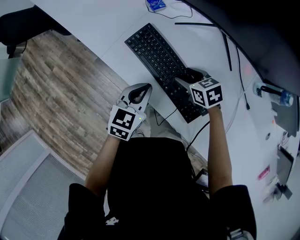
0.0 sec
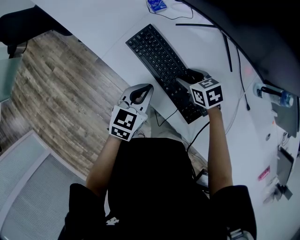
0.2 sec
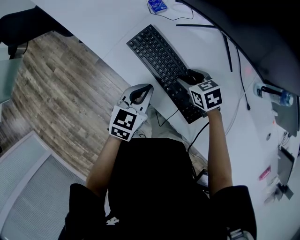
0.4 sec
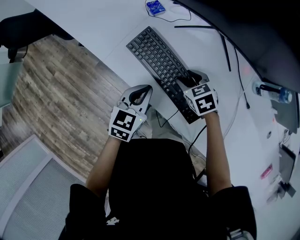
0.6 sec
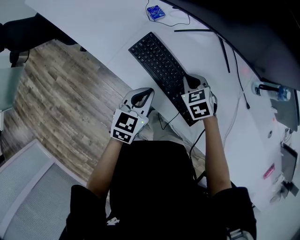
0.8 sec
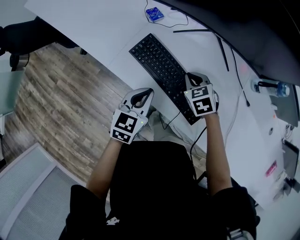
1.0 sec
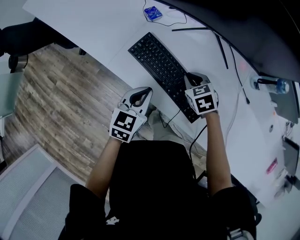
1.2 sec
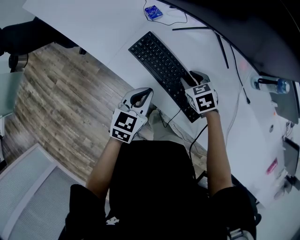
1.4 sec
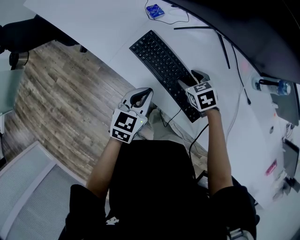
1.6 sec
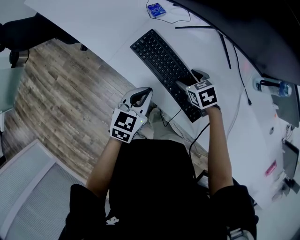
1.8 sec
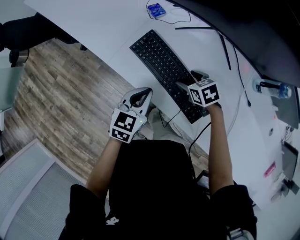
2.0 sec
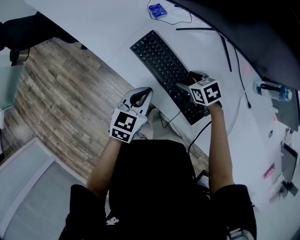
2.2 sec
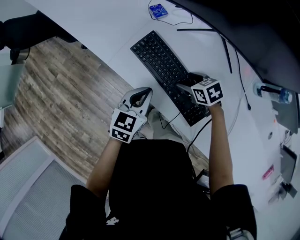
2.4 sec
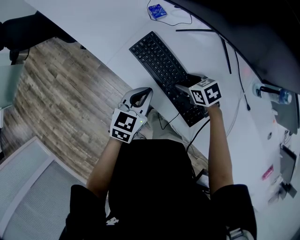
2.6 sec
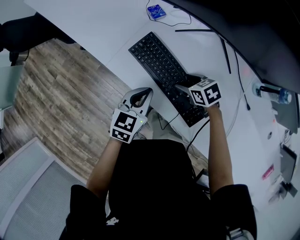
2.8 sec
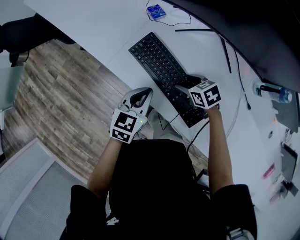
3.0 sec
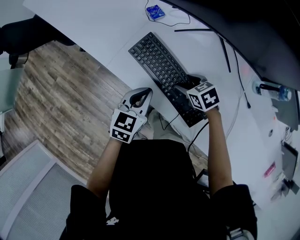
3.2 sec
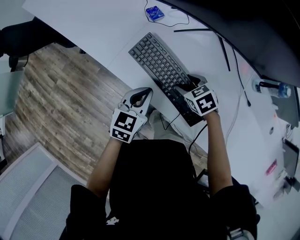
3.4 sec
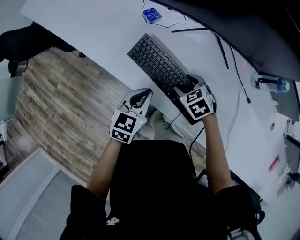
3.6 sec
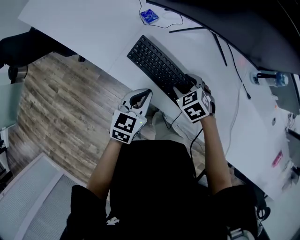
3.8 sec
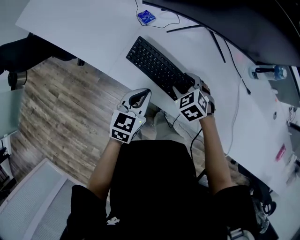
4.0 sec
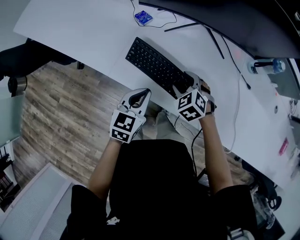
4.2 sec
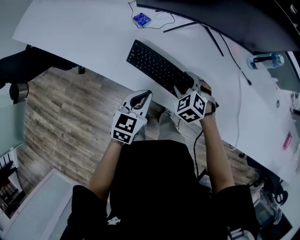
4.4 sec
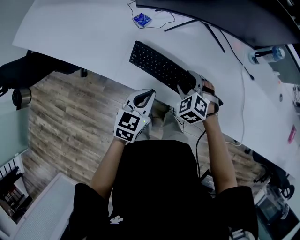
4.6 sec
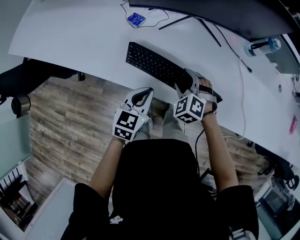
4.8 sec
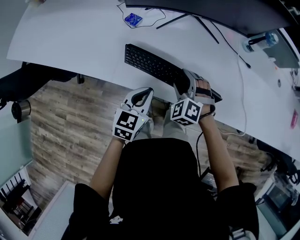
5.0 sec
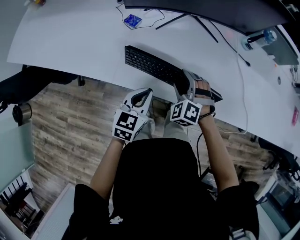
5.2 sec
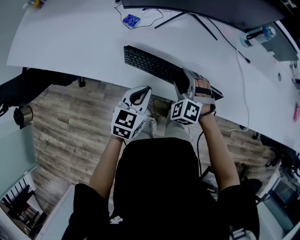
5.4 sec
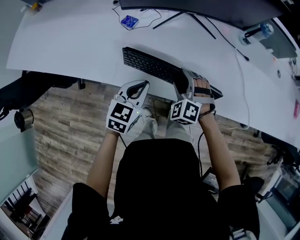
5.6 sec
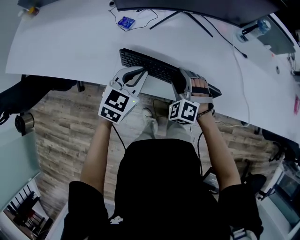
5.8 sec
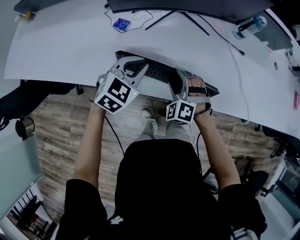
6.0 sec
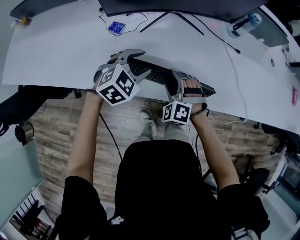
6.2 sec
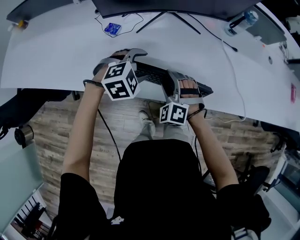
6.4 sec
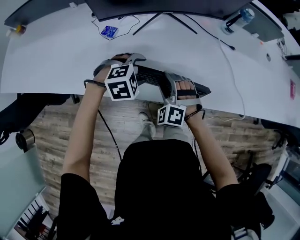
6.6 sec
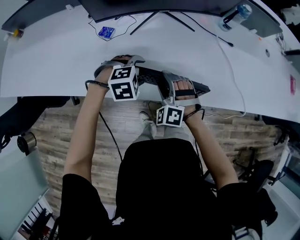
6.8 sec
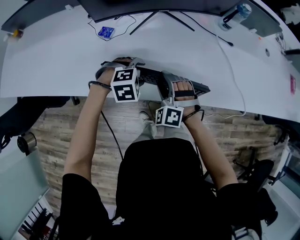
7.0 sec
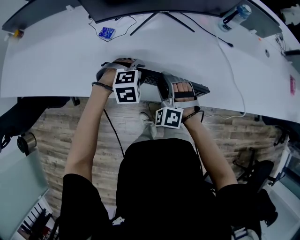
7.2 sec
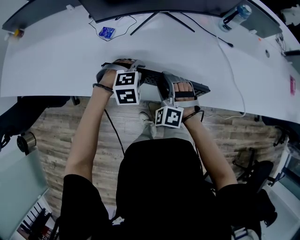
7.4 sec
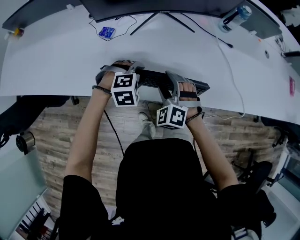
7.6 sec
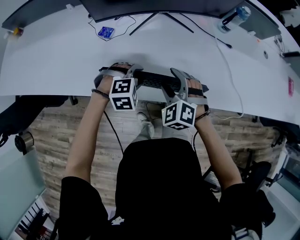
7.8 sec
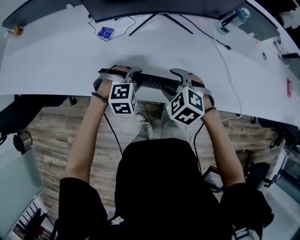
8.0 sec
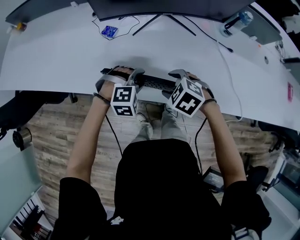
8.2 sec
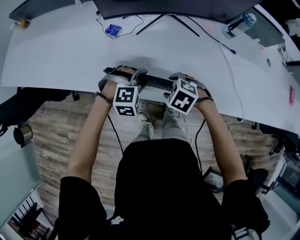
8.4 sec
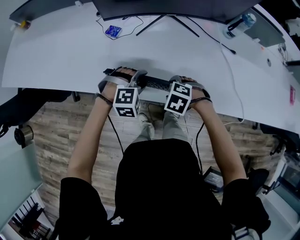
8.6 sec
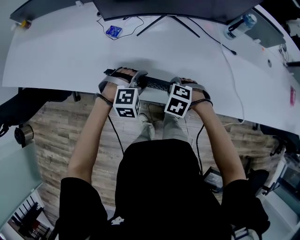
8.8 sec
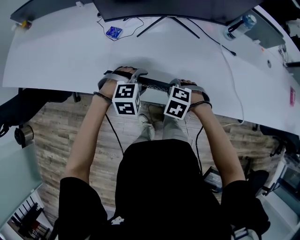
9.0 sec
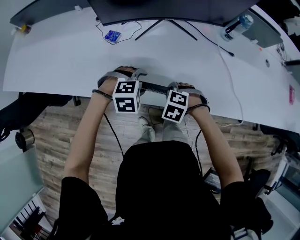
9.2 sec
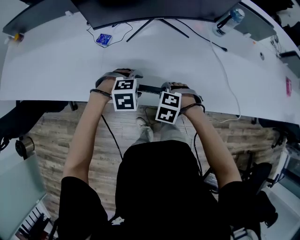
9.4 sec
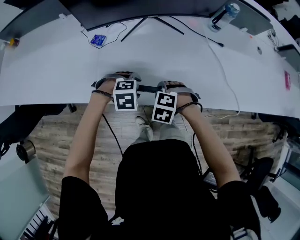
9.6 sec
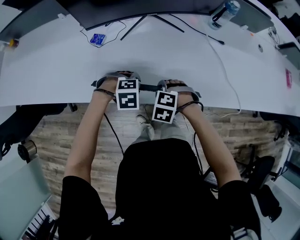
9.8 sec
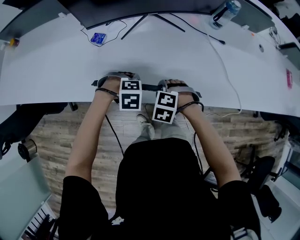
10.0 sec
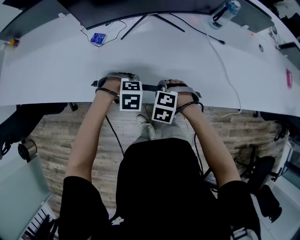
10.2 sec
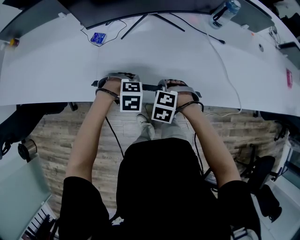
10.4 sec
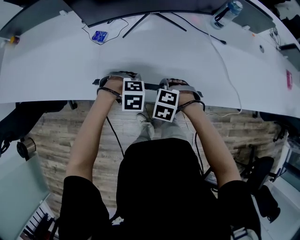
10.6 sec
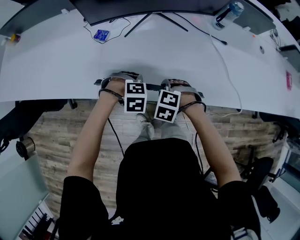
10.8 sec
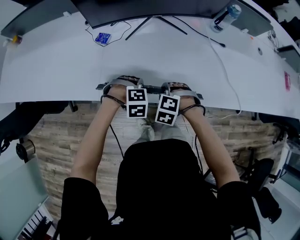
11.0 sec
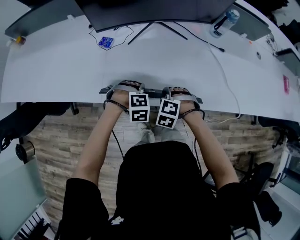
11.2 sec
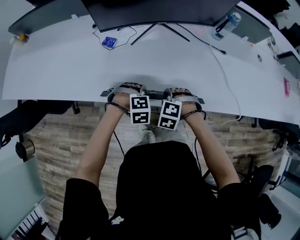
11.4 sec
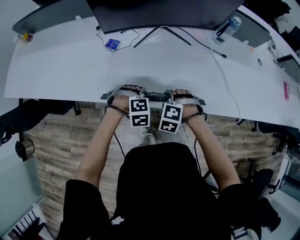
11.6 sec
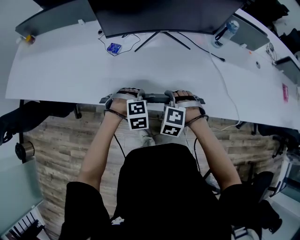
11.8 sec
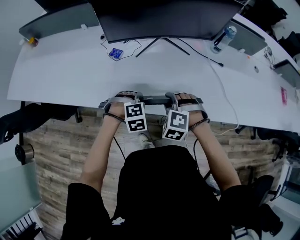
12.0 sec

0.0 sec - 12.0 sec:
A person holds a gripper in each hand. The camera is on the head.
0.0 sec - 1.6 sec: The right gripper closes and opens again.
1.6 sec - 3.0 sec: The grippers move only a little.
3.0 sec - 4.4 sec: The right gripper moves upward, some 5 cm, and turns by some 40 degrees.
4.4 sec - 6.0 sec: The left gripper is displaced forward by approximately 10 cm, and rotates about 40 degrees, while the right gripper swivels roughly 20 degrees.
6.0 sec - 7.6 sec: The left gripper heads downward, covering about 10 cm, rotates approximately 50 degrees, and opens its fingers.
7.6 sec - 9.0 sec: The right gripper goes about 5 cm downward, angles its fingers downward, by roughly 40 degrees, and closes up.
9.0 sec - 10.4 sec: The left gripper shifts by approximately 5 cm, swivels approximately 20 degrees, and closes its fingers.
10.4 sec - 12.0 sec: The left gripper moves upward, approximately 5 cm, and swivels some 20 degrees; the right gripper goes roughly 10 cm upward.

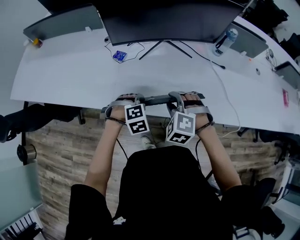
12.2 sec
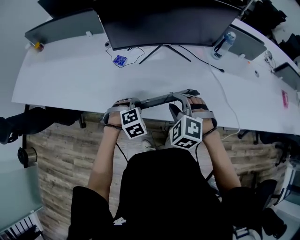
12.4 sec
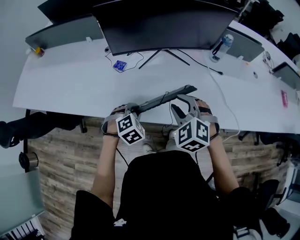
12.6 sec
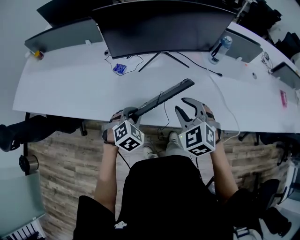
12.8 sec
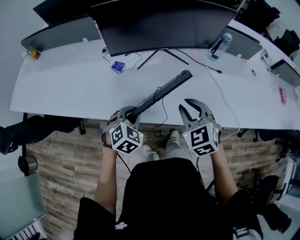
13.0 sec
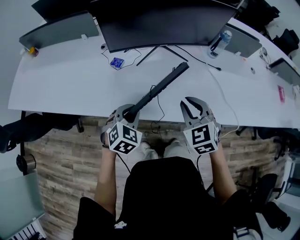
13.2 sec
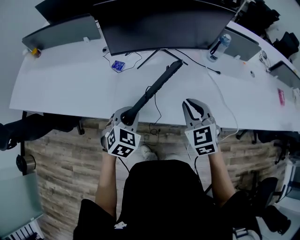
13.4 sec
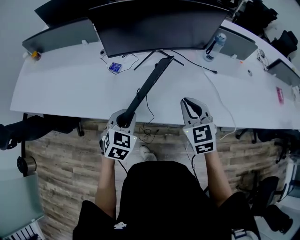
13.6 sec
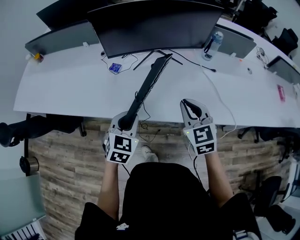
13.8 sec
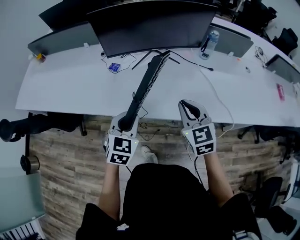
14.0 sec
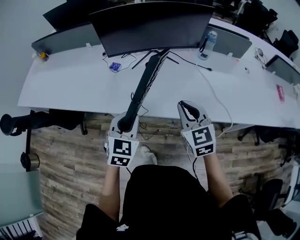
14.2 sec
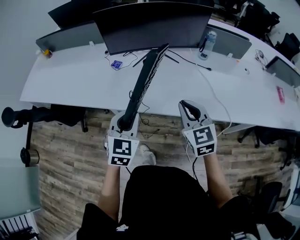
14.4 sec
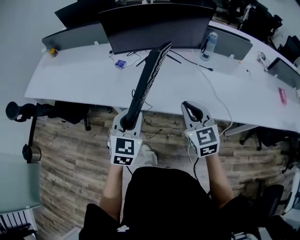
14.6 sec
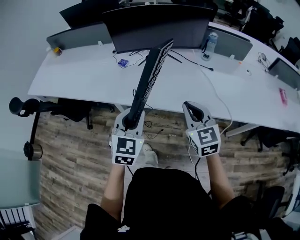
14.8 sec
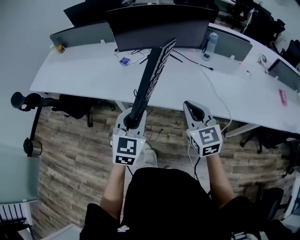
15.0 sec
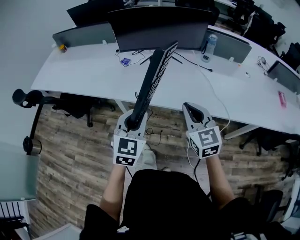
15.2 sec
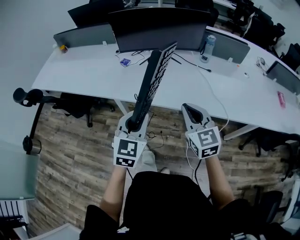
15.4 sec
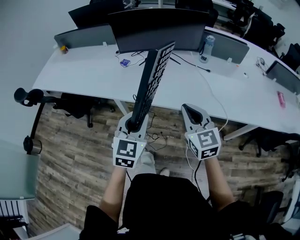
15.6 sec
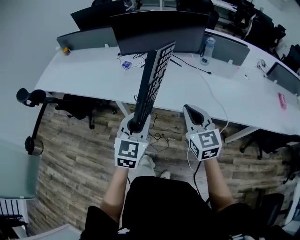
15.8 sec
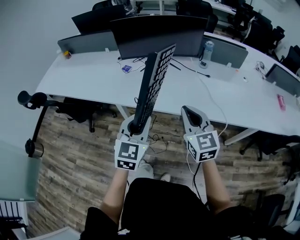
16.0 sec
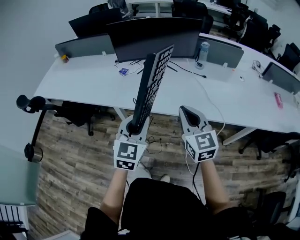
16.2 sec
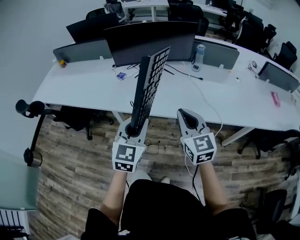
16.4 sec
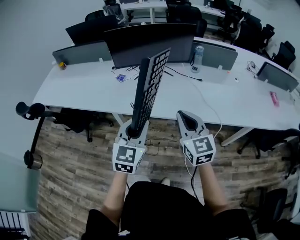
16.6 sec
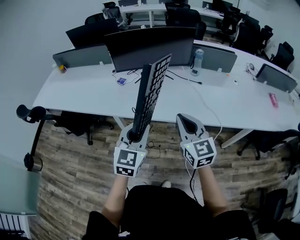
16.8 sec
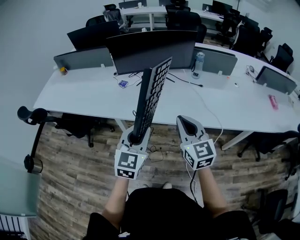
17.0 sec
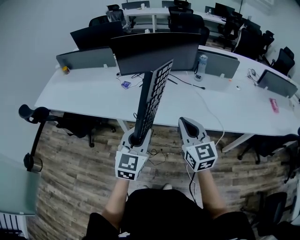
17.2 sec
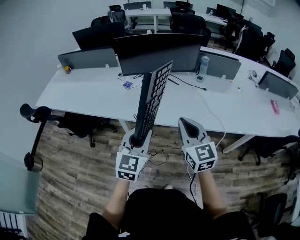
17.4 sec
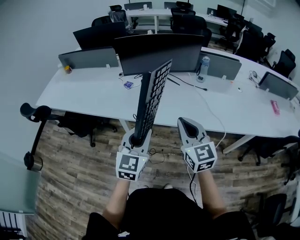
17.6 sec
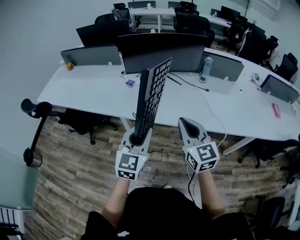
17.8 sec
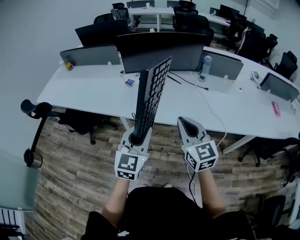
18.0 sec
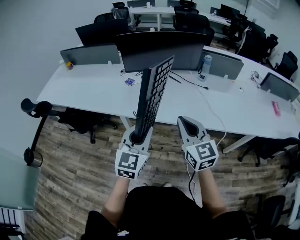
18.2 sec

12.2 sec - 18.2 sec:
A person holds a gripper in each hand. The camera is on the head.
12.2 sec - 13.8 sec: The right gripper shifts about 15 cm upward and to the right, rolls clockwise, seen from behind, by some 50 degrees, and closes. The left gripper moves upward and backward, about 15 cm, and tips its fingers upward by about 30 degrees.
13.8 sec - 15.2 sec: The right gripper heads backward, covering roughly 15 cm; the left gripper travels backward, upward and to the right by approximately 20 cm.
15.2 sec - 16.6 sec: The right gripper shifts by about 5 cm. Meanwhile the left gripper shifts by approximately 5 cm.
16.6 sec - 18.2 sec: The right gripper shifts roughly 5 cm to the left.

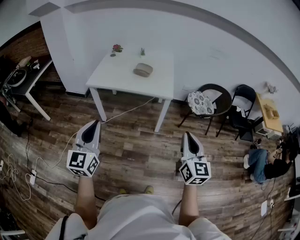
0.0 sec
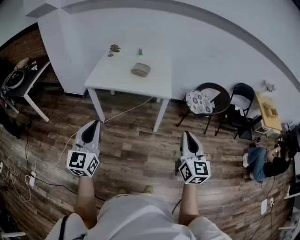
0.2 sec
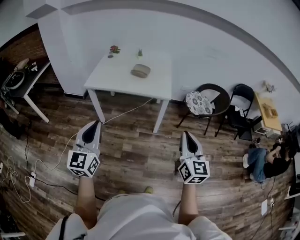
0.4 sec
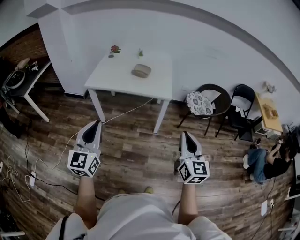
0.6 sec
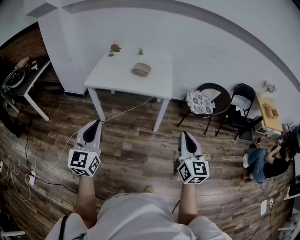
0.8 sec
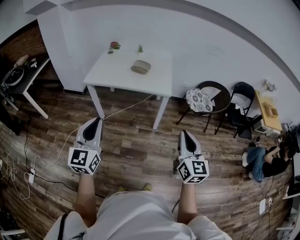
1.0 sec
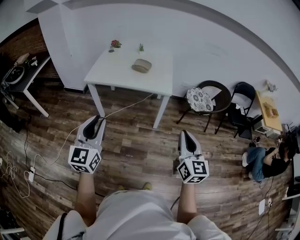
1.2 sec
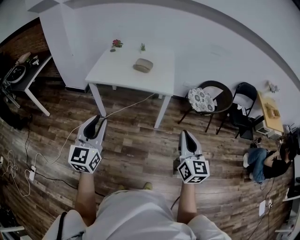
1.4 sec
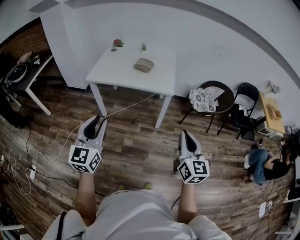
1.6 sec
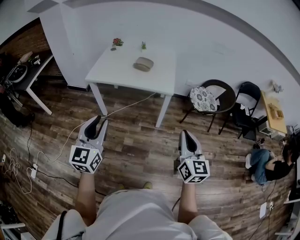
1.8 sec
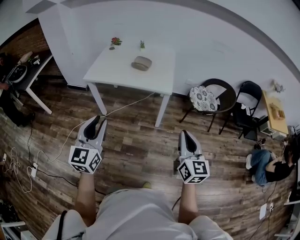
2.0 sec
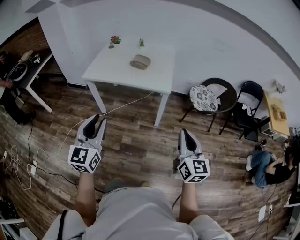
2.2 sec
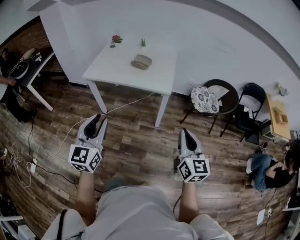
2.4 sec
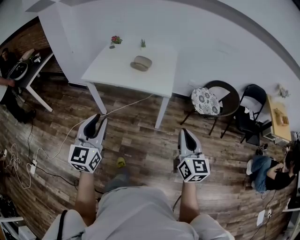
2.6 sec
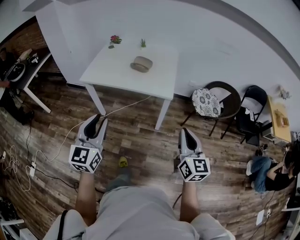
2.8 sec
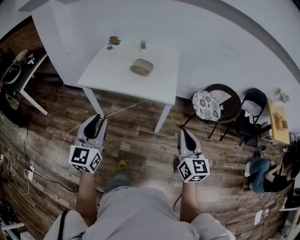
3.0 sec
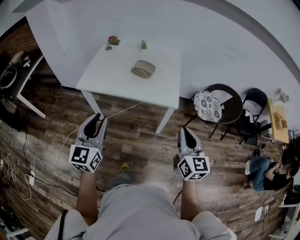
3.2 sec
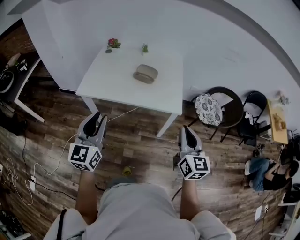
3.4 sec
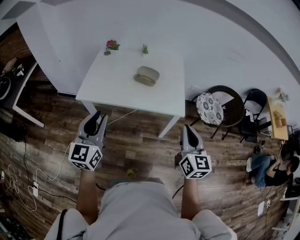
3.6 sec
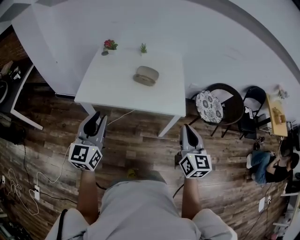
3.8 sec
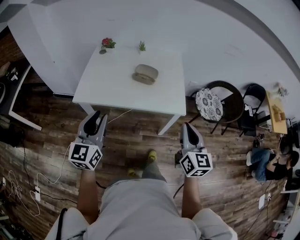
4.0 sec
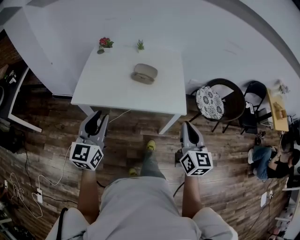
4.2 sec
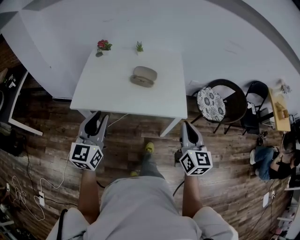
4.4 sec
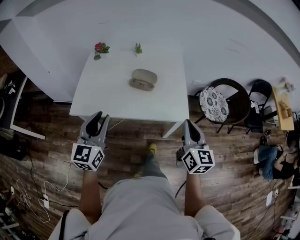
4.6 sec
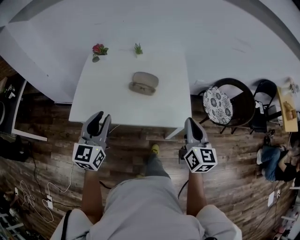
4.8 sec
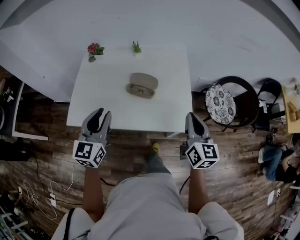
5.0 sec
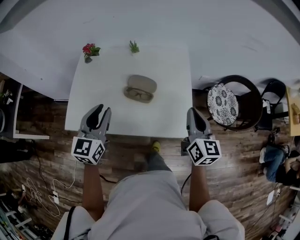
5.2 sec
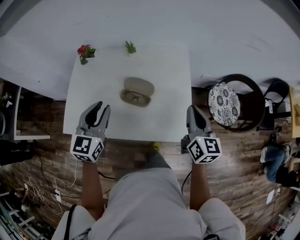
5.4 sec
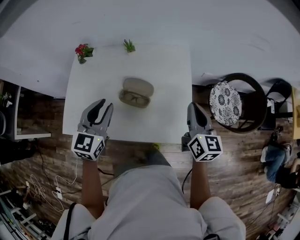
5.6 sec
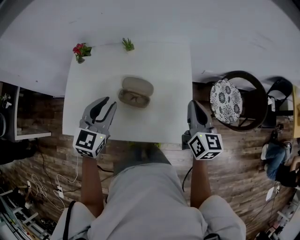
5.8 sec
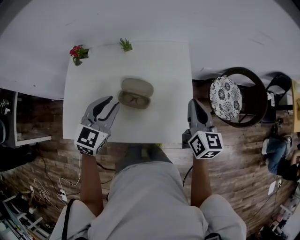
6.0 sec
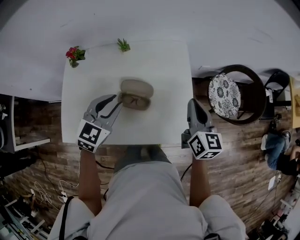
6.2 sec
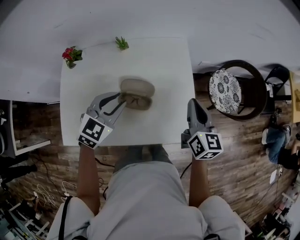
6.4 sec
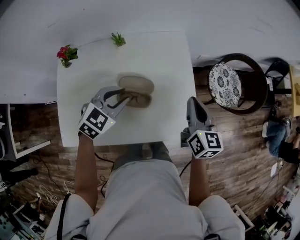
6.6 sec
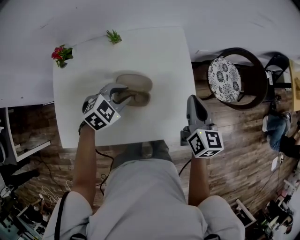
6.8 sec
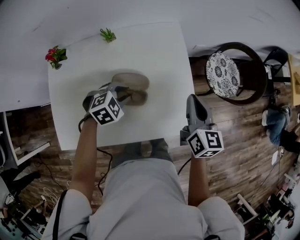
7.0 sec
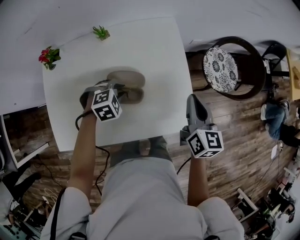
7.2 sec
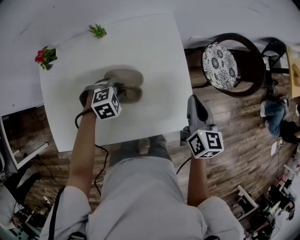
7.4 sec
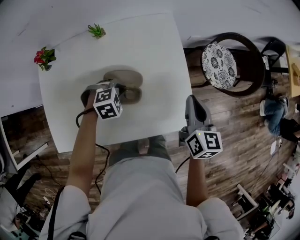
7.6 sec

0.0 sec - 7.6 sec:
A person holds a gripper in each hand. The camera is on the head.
0.0 sec - 1.6 sec: The left gripper opens up.
1.6 sec - 3.0 sec: Both grippers travel together forward, roughly 15 cm.
3.0 sec - 4.6 sec: The right gripper shifts approximately 25 cm forward and to the left. The left gripper travels forward by about 30 cm.
4.6 sec - 6.0 sec: The two grippers go roughly 30 cm forward. The left gripper swivels about 30 degrees.
6.0 sec - 7.6 sec: The left gripper goes approximately 25 cm downward, and points its fingers some 40 degrees further downward. The right gripper moves downward, some 5 cm.
